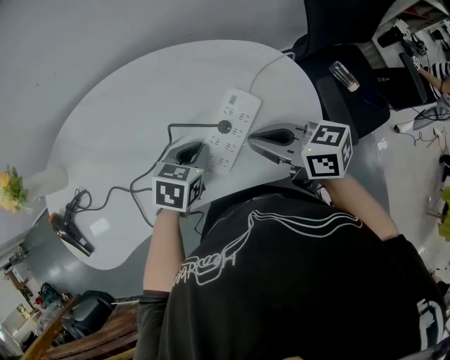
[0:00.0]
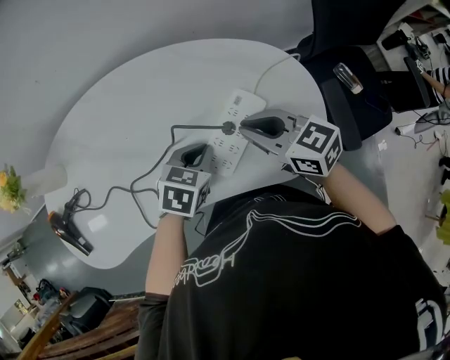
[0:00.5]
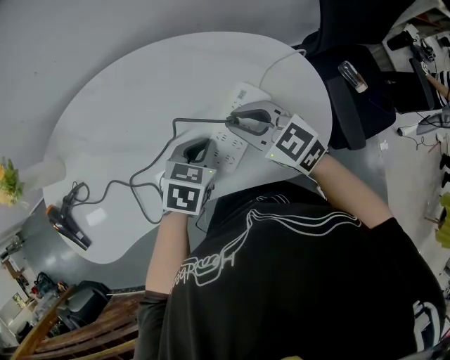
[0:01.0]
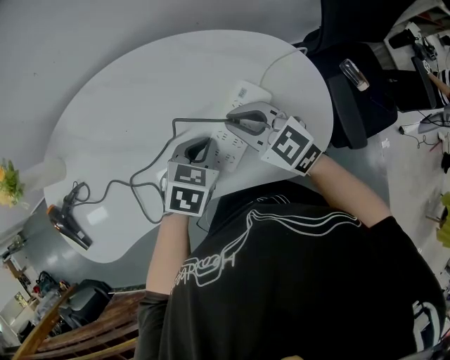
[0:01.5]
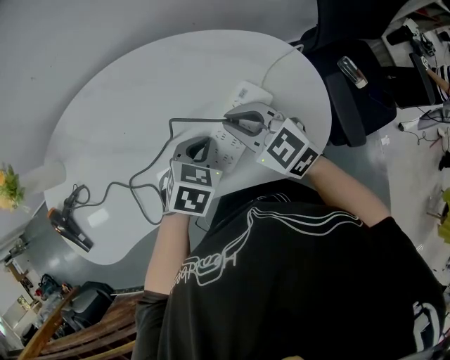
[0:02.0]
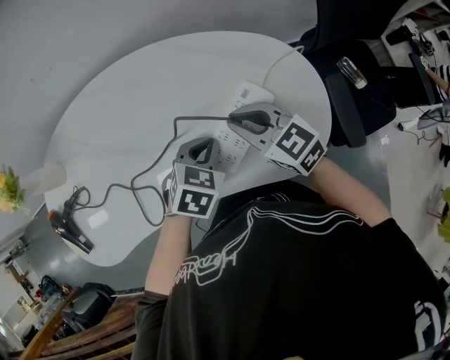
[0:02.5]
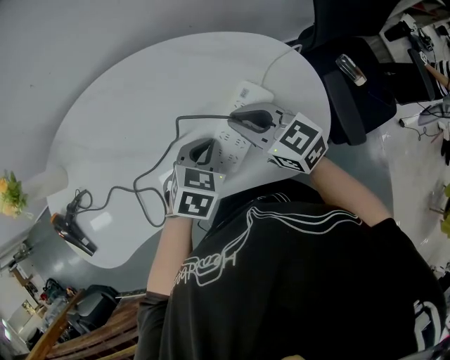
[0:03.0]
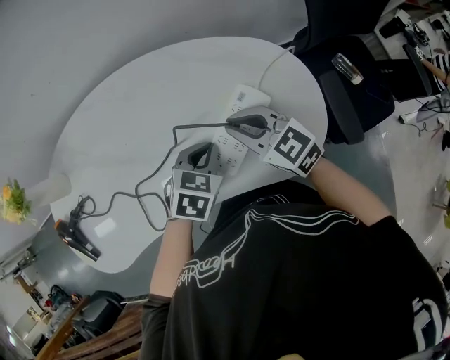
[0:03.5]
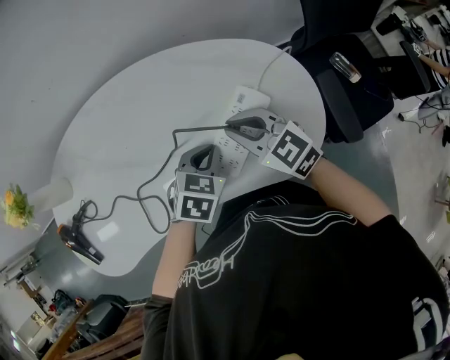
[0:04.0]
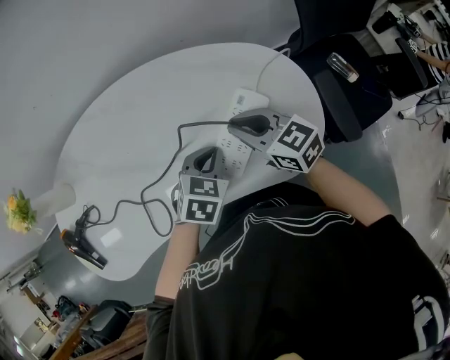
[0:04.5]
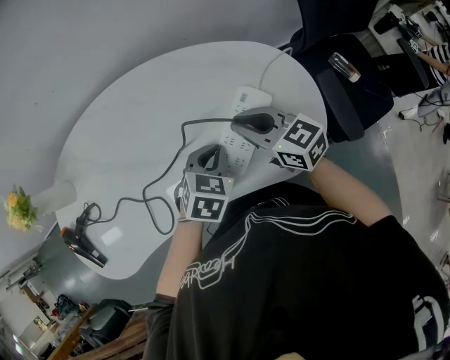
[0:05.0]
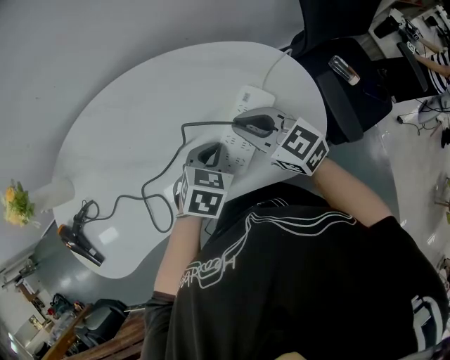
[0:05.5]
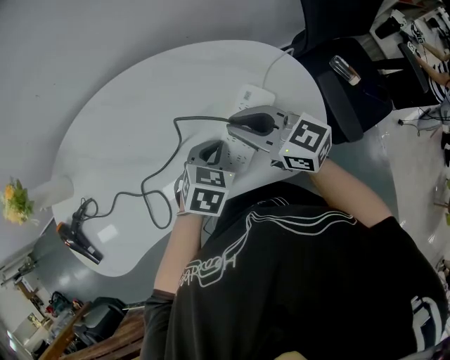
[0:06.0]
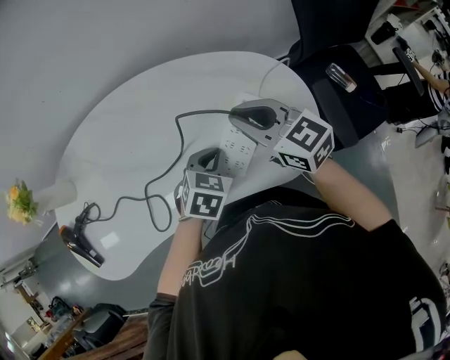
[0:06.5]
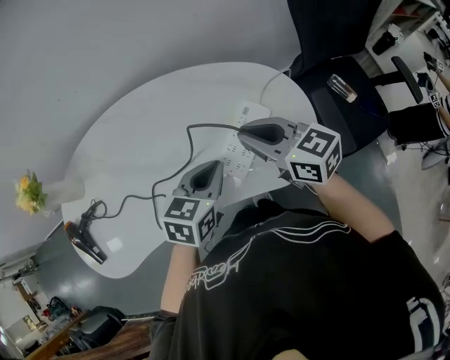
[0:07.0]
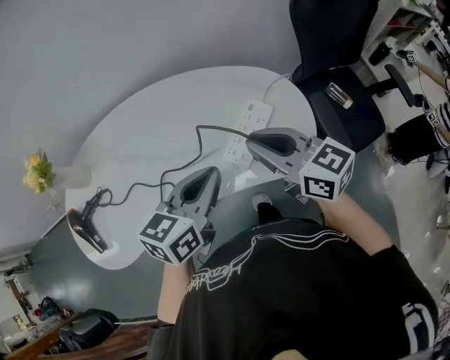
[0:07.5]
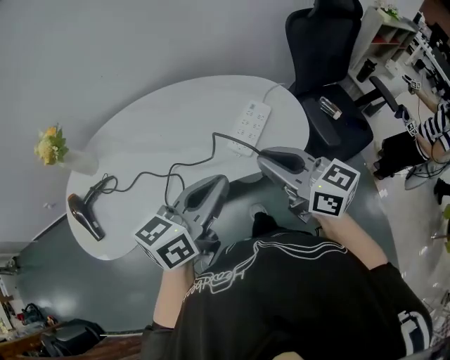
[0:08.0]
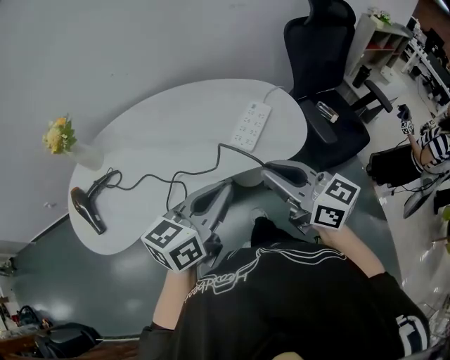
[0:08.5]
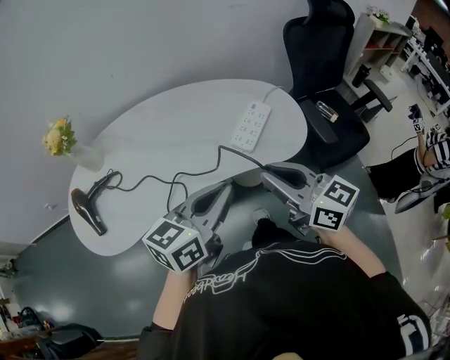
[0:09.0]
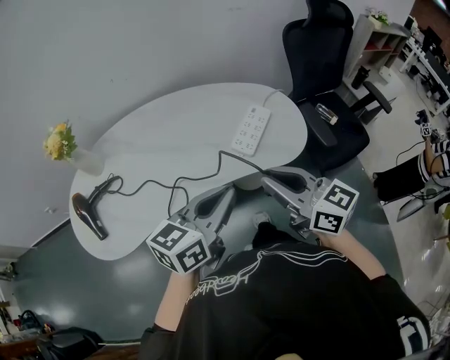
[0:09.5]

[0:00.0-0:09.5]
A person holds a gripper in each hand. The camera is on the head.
0:00.0 to 0:02.0: The right gripper travels forward by some 5 cm, and swivels approximately 40 degrees.
0:02.0 to 0:04.0: The grippers stay close to where they were, moving slightly.
0:05.5 to 0:07.5: The grippers both shift upward and backward by some 20 cm. The left gripper tips its fingers upward by some 30 degrees.
0:07.5 to 0:09.5: Both grippers travel together backward, about 20 cm.

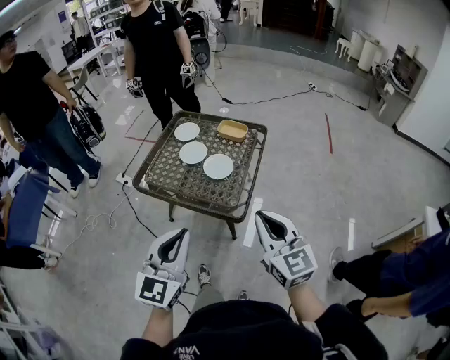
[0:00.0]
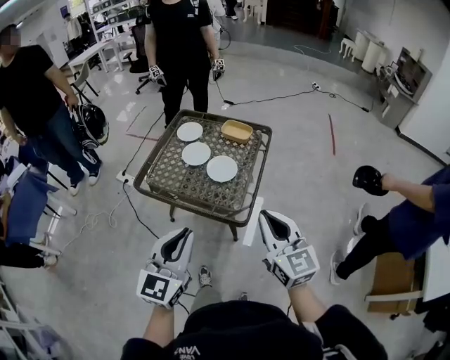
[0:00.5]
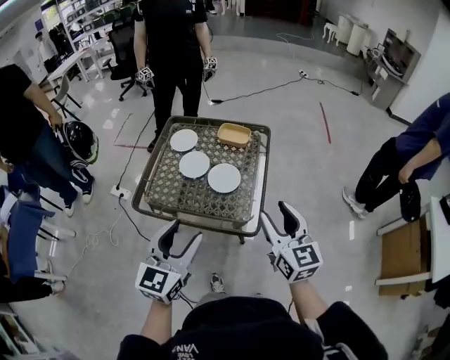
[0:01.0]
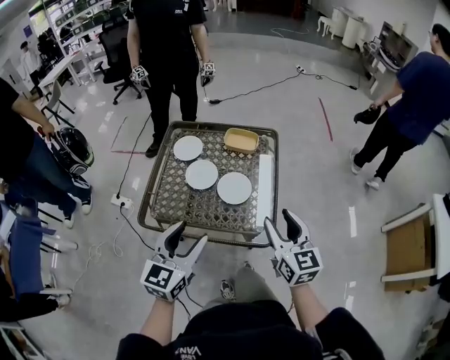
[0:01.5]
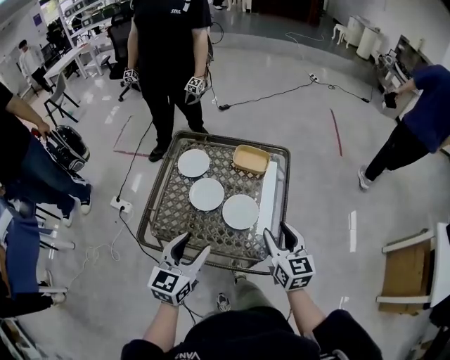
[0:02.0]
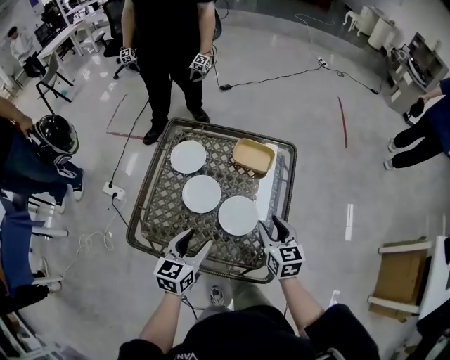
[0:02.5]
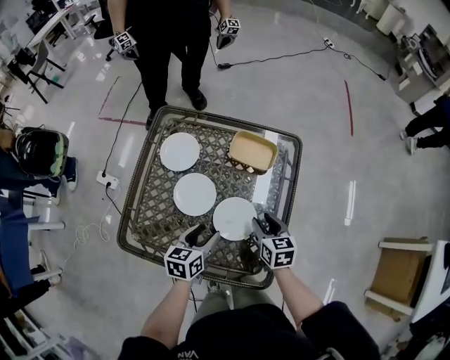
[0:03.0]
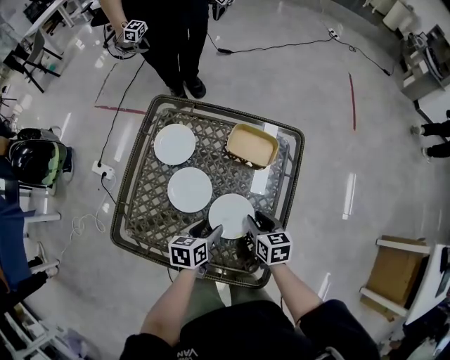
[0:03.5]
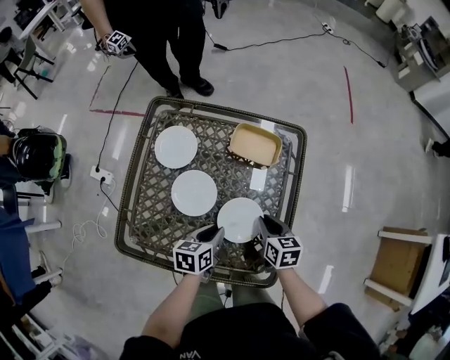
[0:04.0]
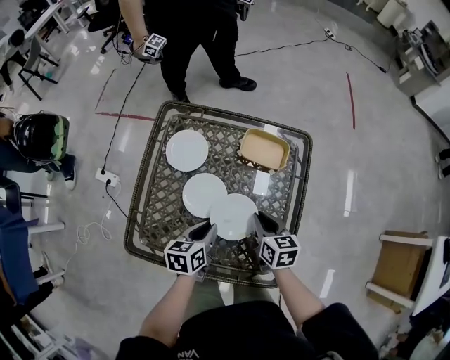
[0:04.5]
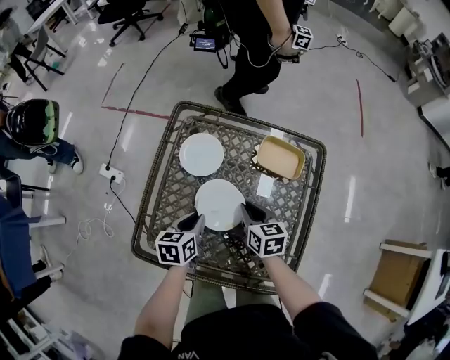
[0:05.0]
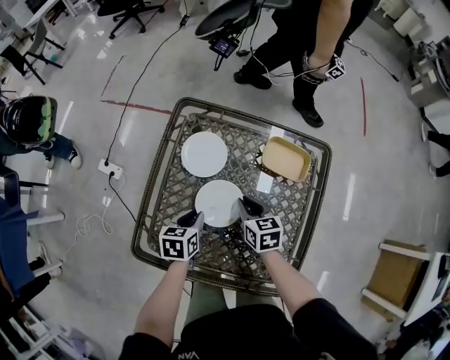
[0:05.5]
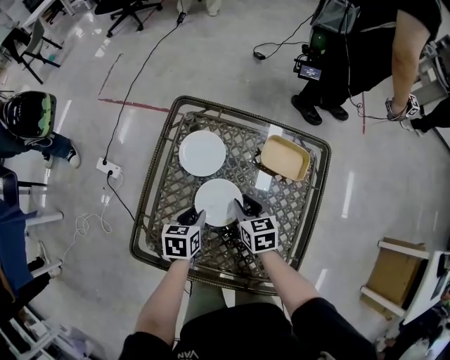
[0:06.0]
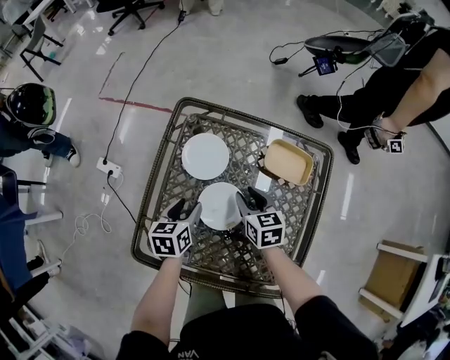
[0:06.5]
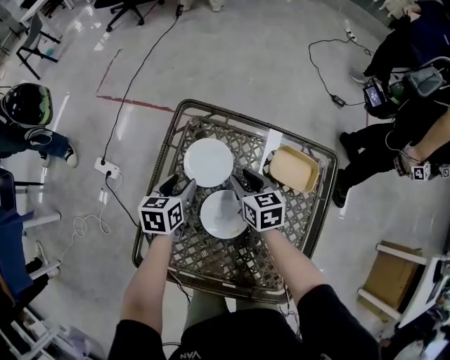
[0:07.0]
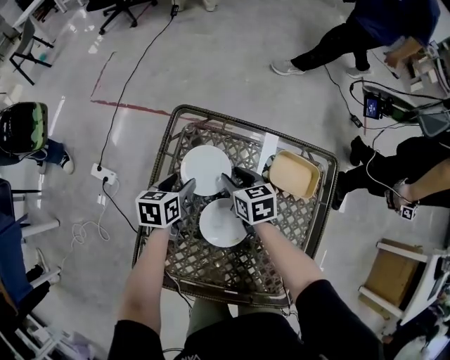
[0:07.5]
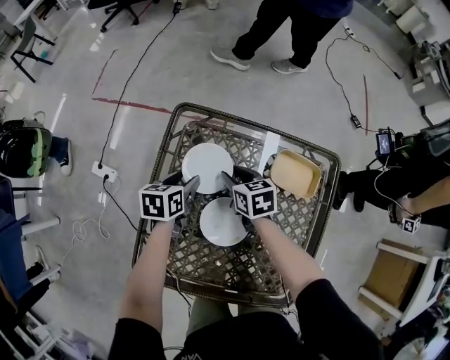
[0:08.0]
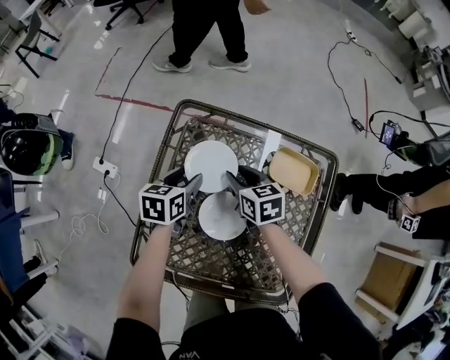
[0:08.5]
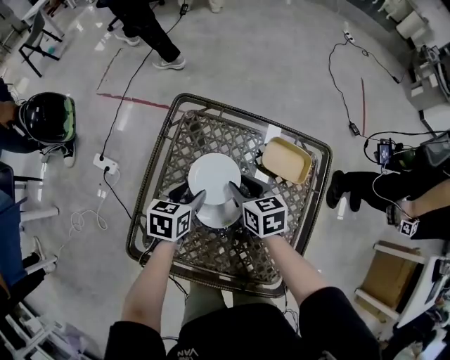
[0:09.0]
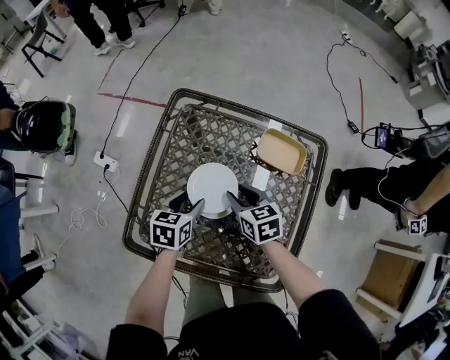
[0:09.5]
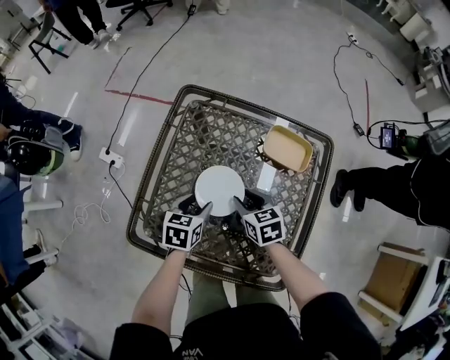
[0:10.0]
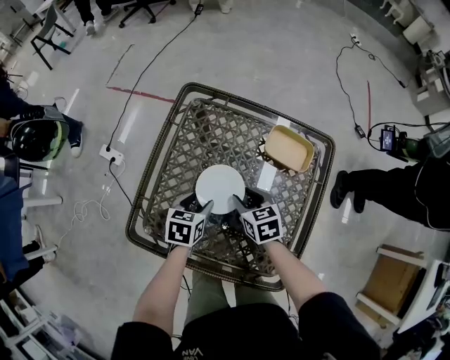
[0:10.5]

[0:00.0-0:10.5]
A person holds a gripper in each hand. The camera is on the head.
0:00.0 to 0:02.0: The grippers both shift forward and downward by roughly 30 cm. The right gripper changes its angle by roughly 20 degrees, and opens its fingers; the left gripper turns by approximately 20 degrees, and opens up.
0:02.0 to 0:04.0: Both grippers travel together downward and forward, some 25 cm. The left gripper changes its angle by some 40 degrees, and closes its fingers, while the right gripper changes its angle by roughly 30 degrees, and closes.
0:04.0 to 0:06.5: Both grippers move to the left and forward, about 20 cm. The left gripper opens.
0:06.5 to 0:08.5: The two grippers go some 10 cm forward.
0:08.5 to 0:10.5: The two grippers go about 15 cm backward.

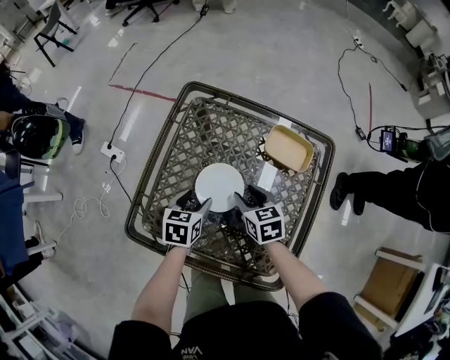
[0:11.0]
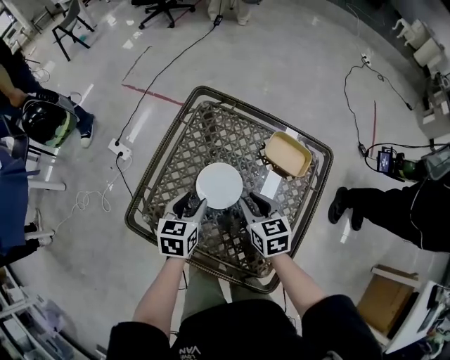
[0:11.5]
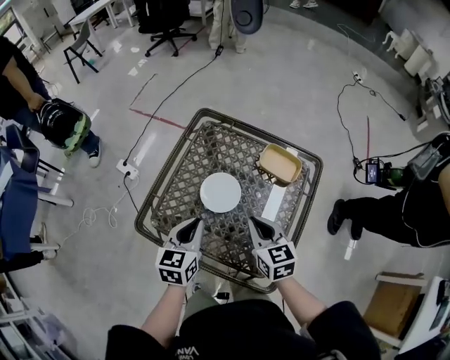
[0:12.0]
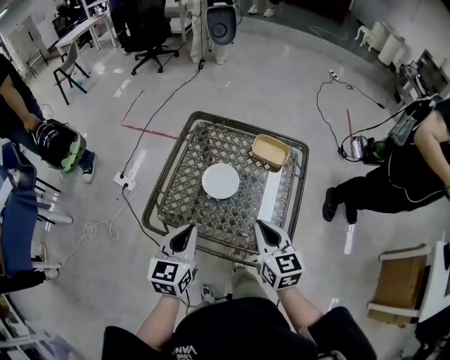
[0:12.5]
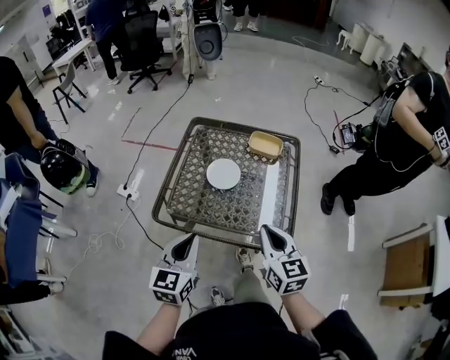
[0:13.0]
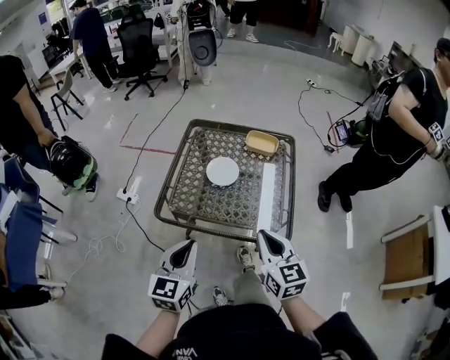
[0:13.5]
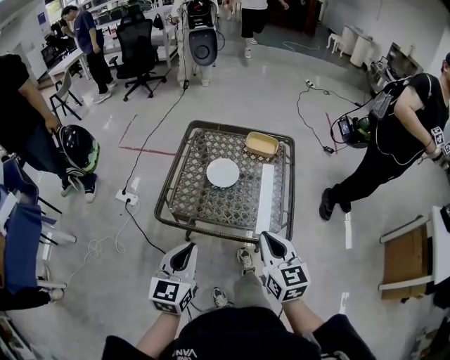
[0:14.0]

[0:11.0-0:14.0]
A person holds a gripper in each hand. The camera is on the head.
0:11.0 to 0:12.5: The right gripper travels backward and upward by roughly 30 cm, swivels about 30 degrees, and closes up. The left gripper heads upward and backward, covering approximately 30 cm, rotates about 30 degrees, and closes up.
0:12.5 to 0:14.0: The grippers both shift backward by roughly 15 cm.

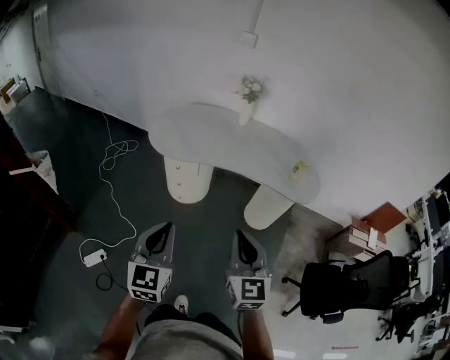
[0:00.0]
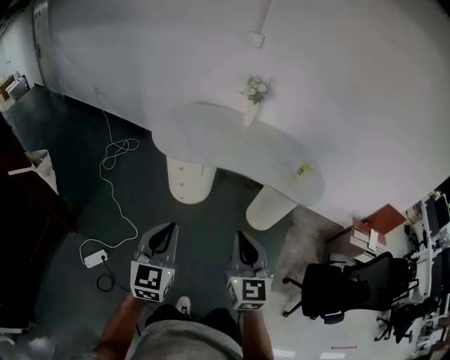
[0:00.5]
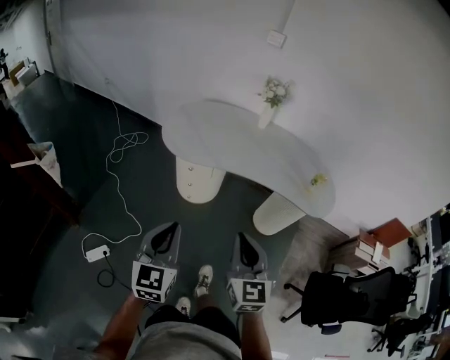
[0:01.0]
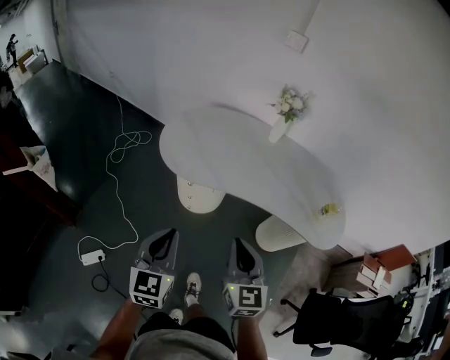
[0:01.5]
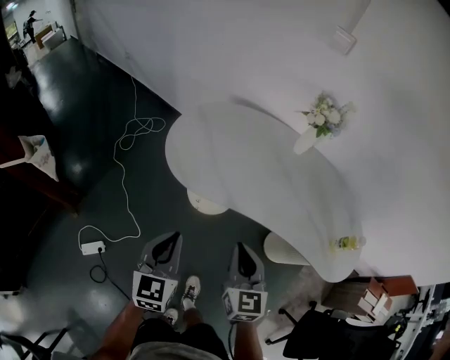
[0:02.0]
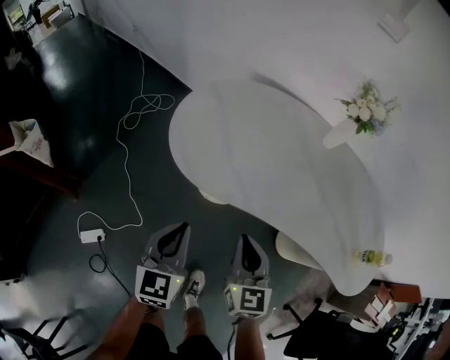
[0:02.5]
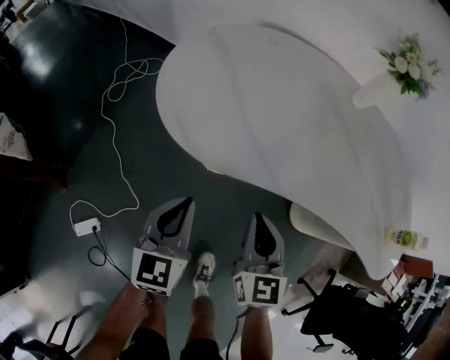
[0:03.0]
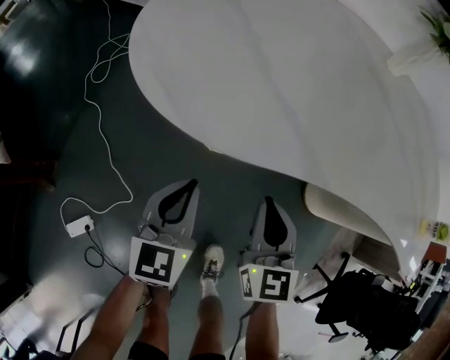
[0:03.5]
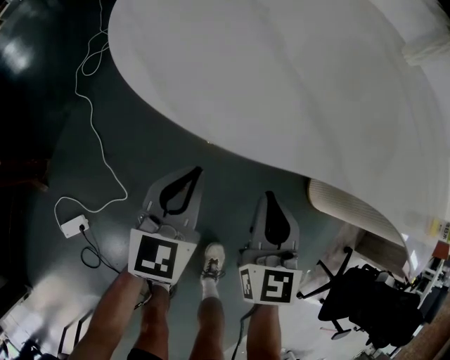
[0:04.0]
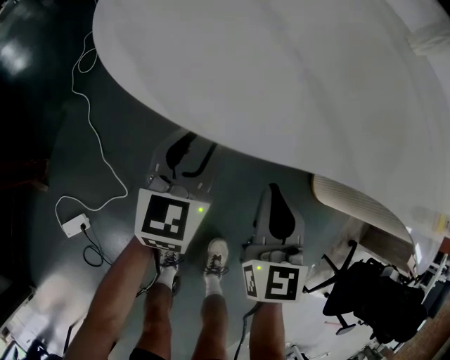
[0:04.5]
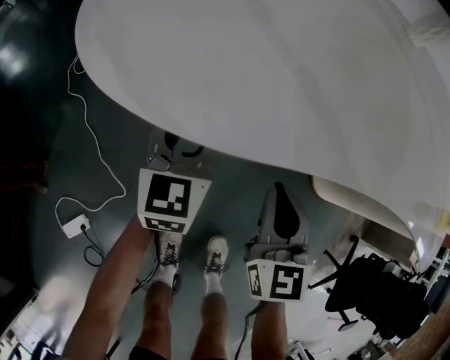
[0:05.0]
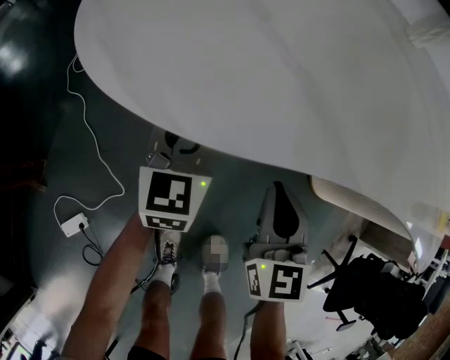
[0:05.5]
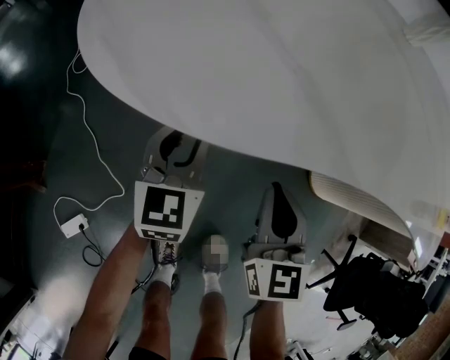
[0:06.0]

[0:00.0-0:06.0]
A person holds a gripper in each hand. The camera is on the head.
0:00.0 to 0:02.0: The grippers both shift forward and downward by approximately 35 cm.
0:02.0 to 0:04.0: Both grippers move downward, about 35 cm.
0:04.0 to 0:06.0: The left gripper goes roughly 5 cm forward, and opens its fingers.
